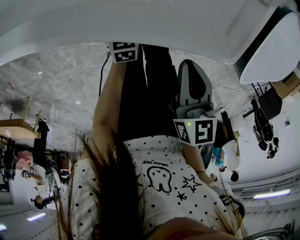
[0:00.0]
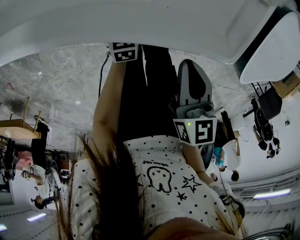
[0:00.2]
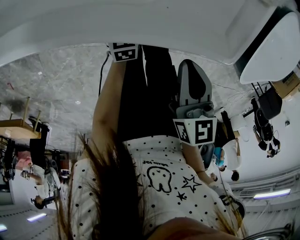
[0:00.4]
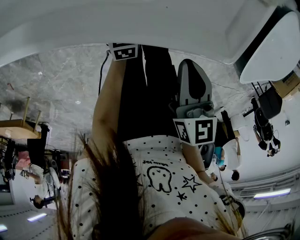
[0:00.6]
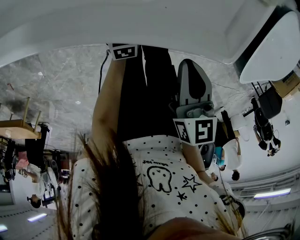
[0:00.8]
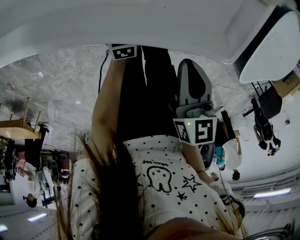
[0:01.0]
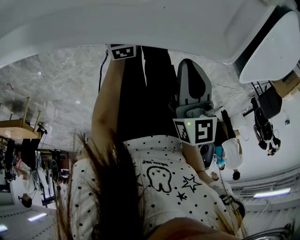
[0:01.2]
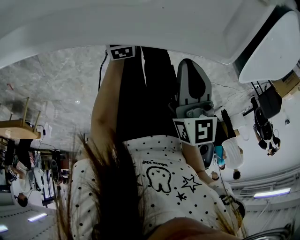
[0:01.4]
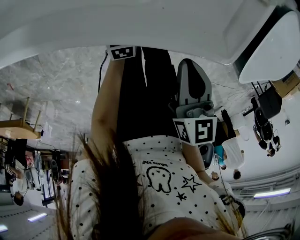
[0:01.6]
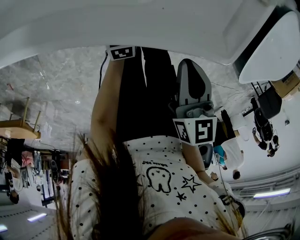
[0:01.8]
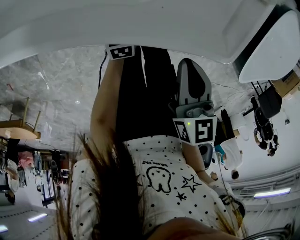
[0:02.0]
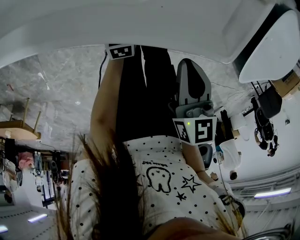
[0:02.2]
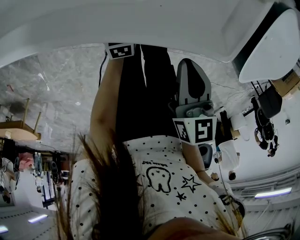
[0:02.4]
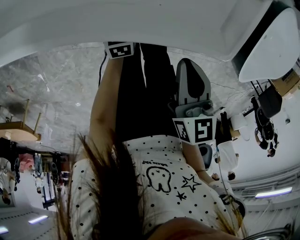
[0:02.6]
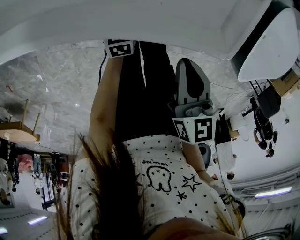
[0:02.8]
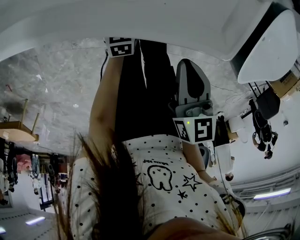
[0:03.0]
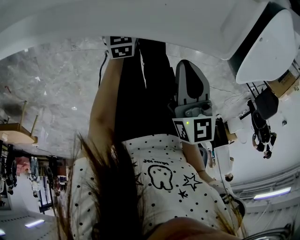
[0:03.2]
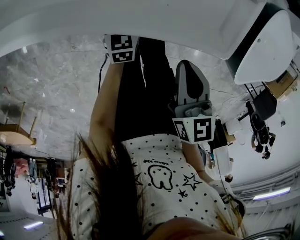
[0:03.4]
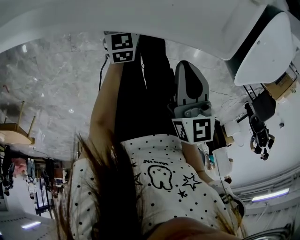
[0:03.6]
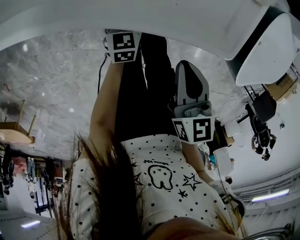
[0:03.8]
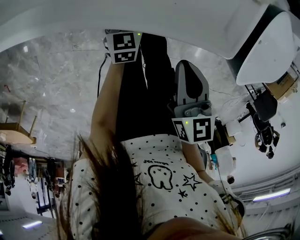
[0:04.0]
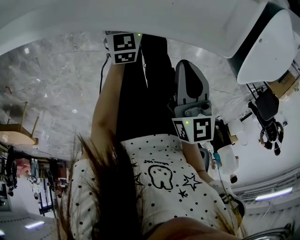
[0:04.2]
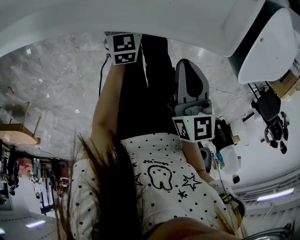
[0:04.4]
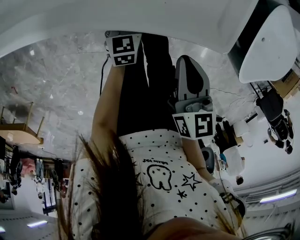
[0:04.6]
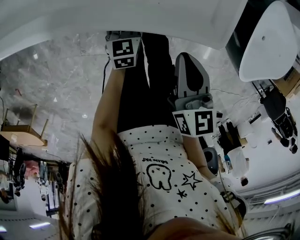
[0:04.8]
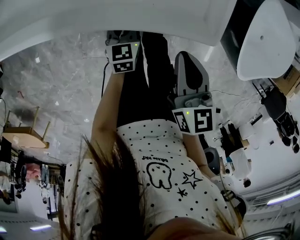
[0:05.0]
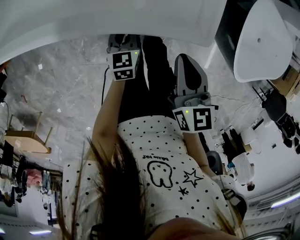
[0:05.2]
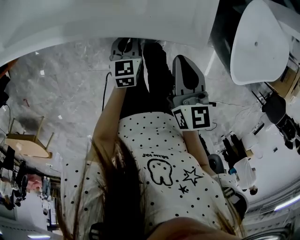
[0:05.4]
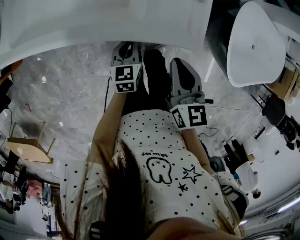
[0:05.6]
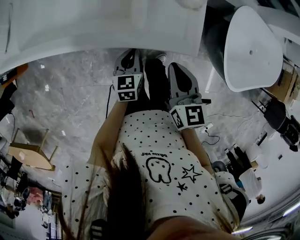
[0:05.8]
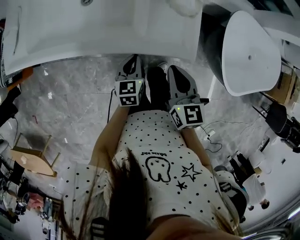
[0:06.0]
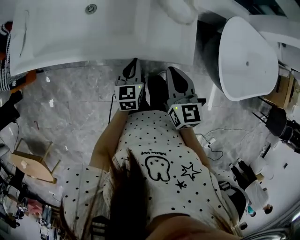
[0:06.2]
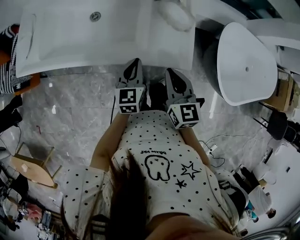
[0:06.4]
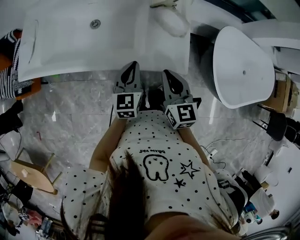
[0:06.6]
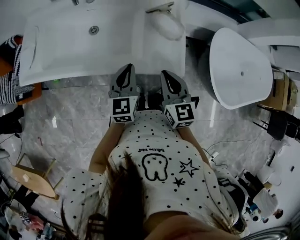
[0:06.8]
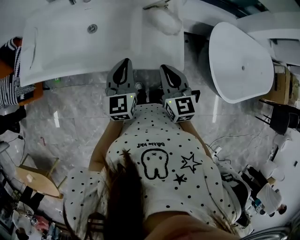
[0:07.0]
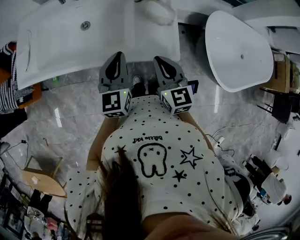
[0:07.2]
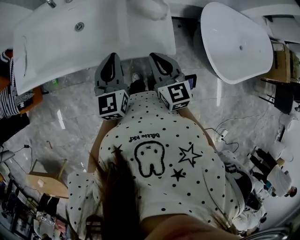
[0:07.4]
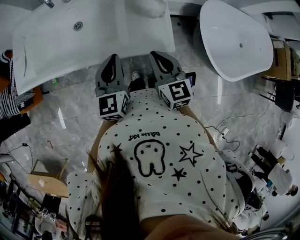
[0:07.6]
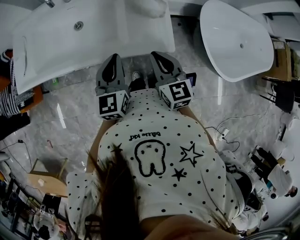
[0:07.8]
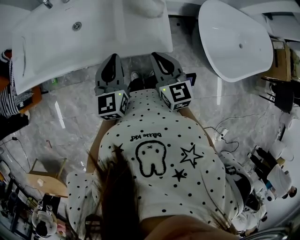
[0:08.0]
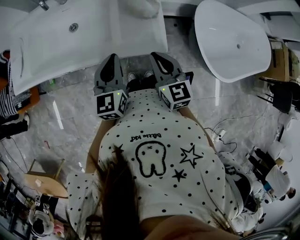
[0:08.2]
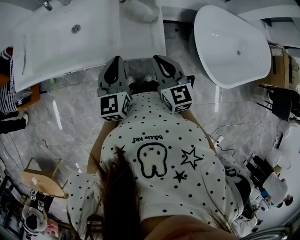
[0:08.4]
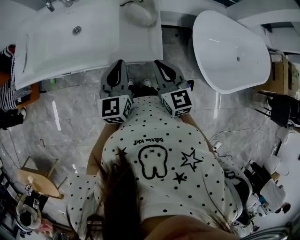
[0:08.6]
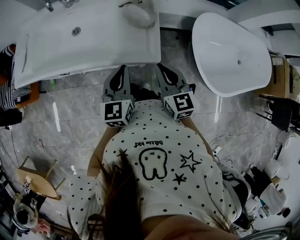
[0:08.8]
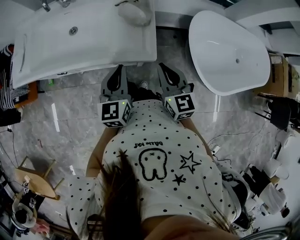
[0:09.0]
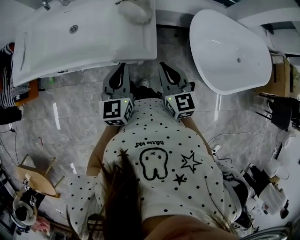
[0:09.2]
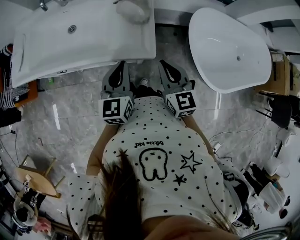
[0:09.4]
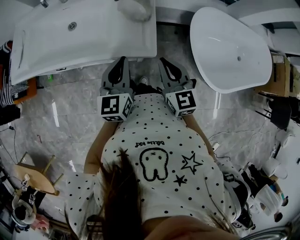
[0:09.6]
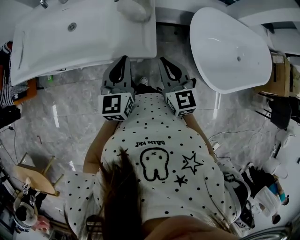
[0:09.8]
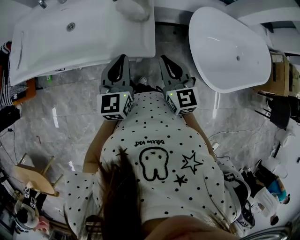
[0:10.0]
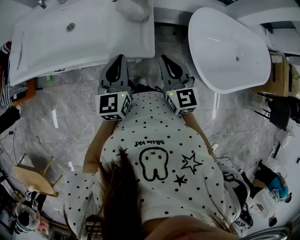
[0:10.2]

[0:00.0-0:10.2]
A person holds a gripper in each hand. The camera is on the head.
0:00.0 to 0:03.0: The grippers move only a little.
0:03.0 to 0:04.4: The left gripper closes.
0:04.4 to 0:05.8: Both grippers move upward, about 15 cm.
0:05.8 to 0:07.2: The right gripper heads upward, covering about 5 cm, while the left gripper moves upward, approximately 25 cm, and changes its angle by approximately 30 degrees.
0:07.2 to 0:08.8: The right gripper shifts some 10 cm to the right. Meanwhile the left gripper moves to the right and backward, about 10 cm.
0:08.8 to 0:10.2: The grippers move only a little.

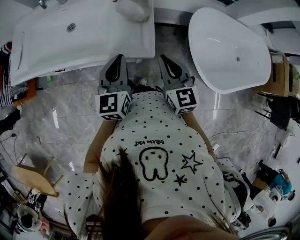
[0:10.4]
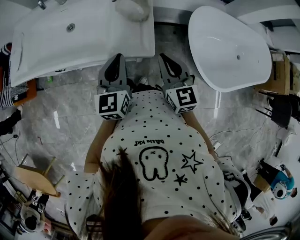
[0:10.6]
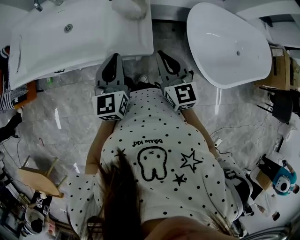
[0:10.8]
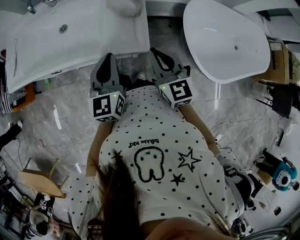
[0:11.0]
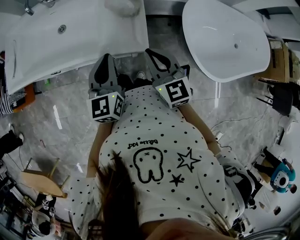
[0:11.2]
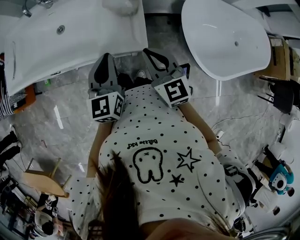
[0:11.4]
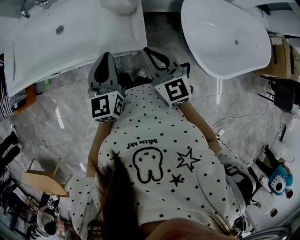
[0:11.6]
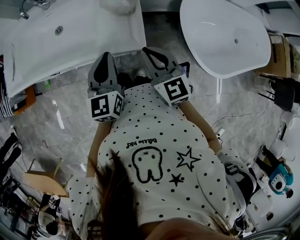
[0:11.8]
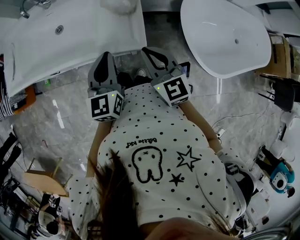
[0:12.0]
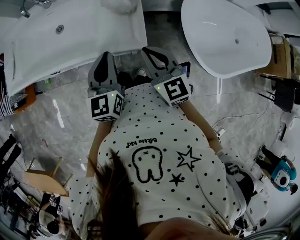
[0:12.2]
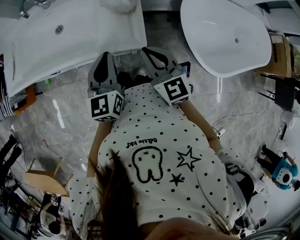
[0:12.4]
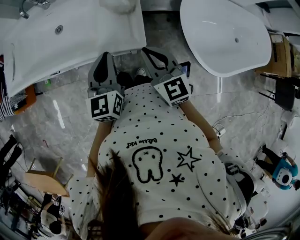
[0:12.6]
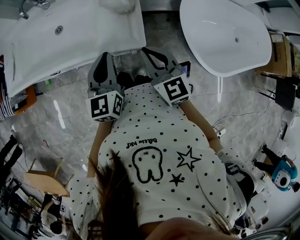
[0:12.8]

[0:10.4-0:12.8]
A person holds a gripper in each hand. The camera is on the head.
0:10.4 to 0:11.6: There are only small adjustments of the grippers.
0:11.6 to 0:12.8: Neither gripper changes place.

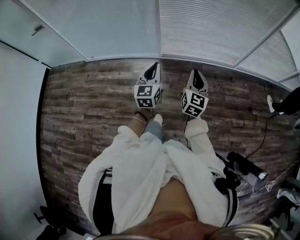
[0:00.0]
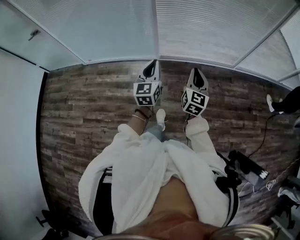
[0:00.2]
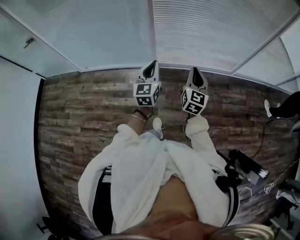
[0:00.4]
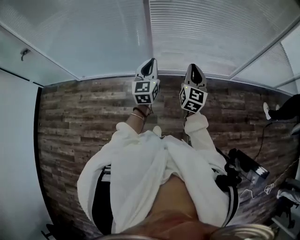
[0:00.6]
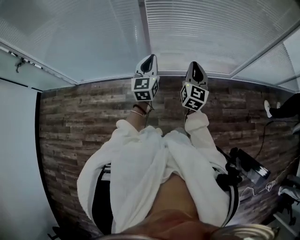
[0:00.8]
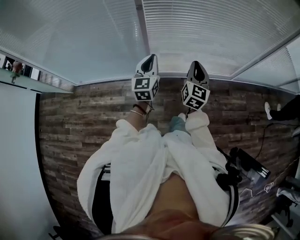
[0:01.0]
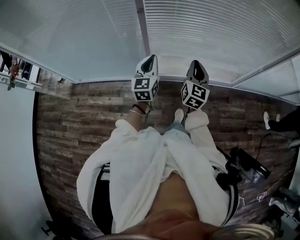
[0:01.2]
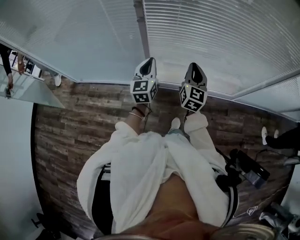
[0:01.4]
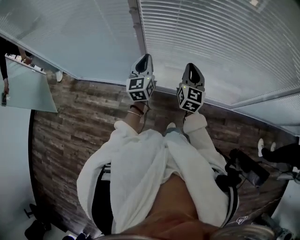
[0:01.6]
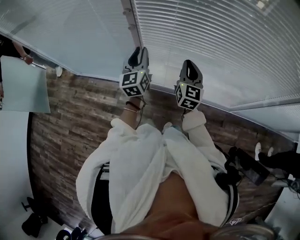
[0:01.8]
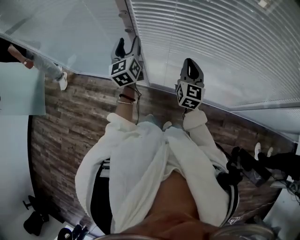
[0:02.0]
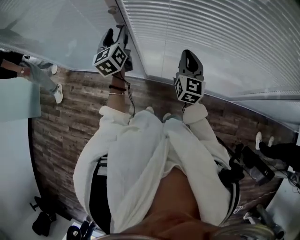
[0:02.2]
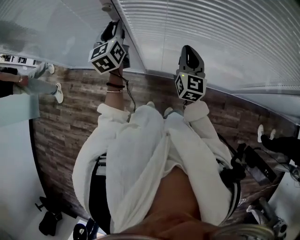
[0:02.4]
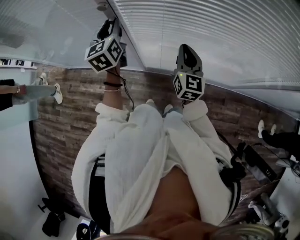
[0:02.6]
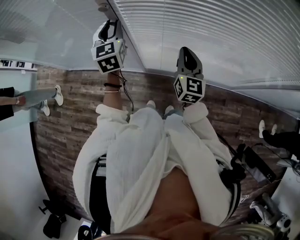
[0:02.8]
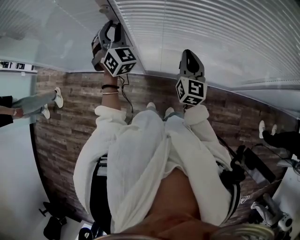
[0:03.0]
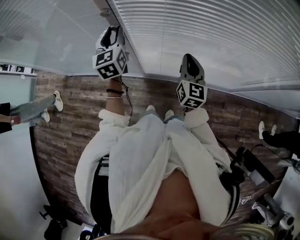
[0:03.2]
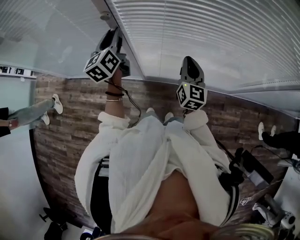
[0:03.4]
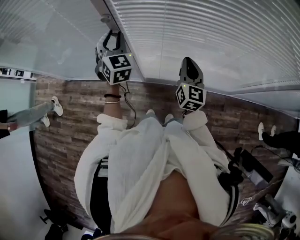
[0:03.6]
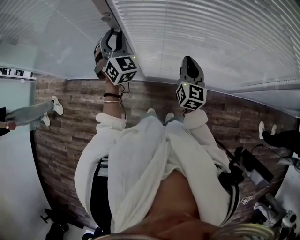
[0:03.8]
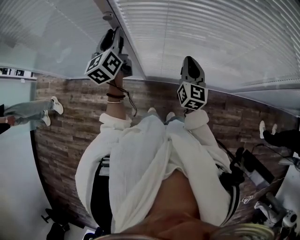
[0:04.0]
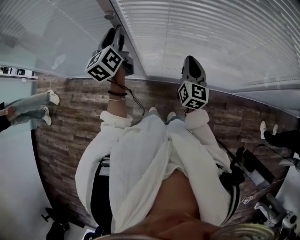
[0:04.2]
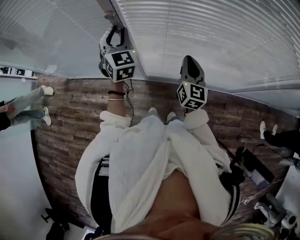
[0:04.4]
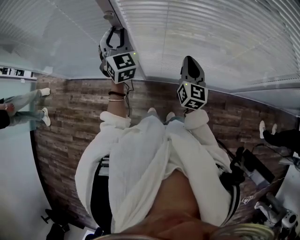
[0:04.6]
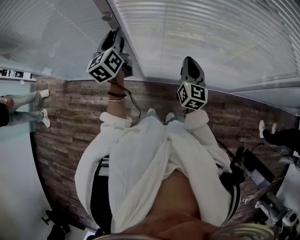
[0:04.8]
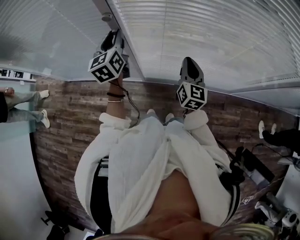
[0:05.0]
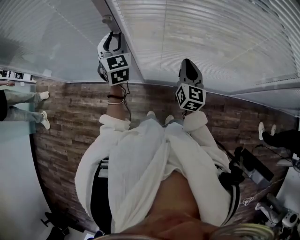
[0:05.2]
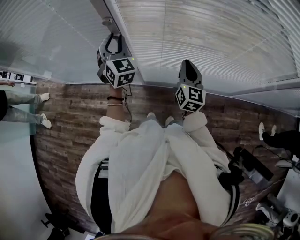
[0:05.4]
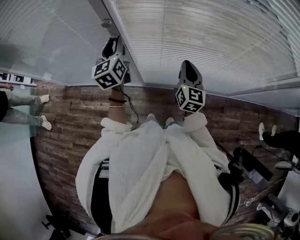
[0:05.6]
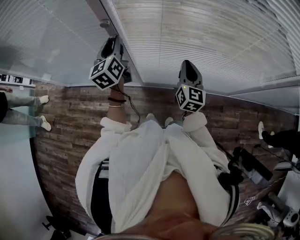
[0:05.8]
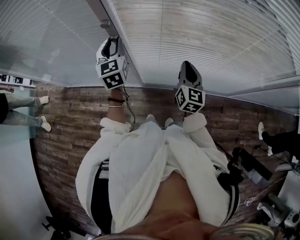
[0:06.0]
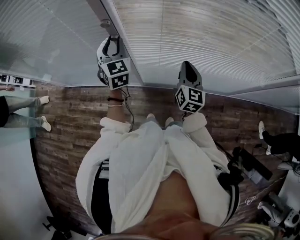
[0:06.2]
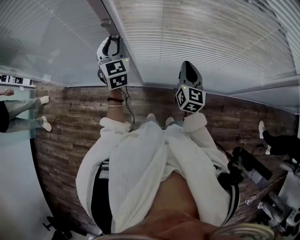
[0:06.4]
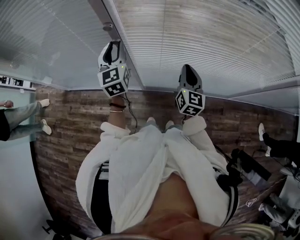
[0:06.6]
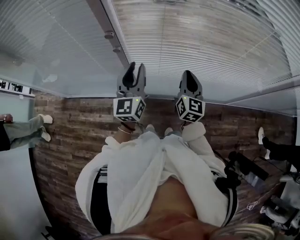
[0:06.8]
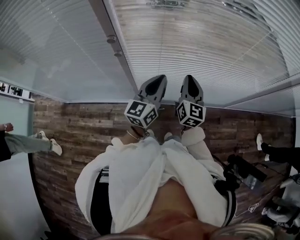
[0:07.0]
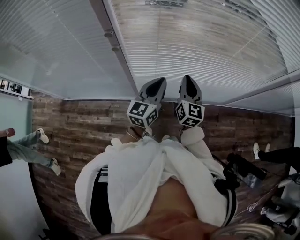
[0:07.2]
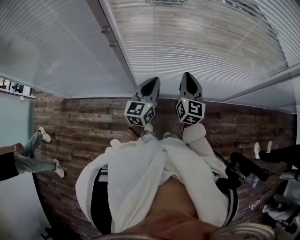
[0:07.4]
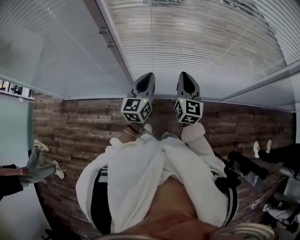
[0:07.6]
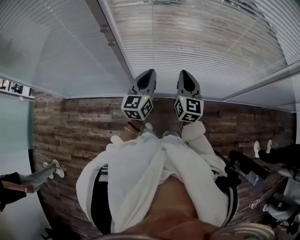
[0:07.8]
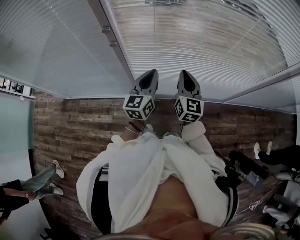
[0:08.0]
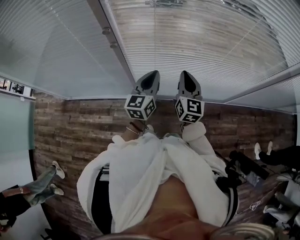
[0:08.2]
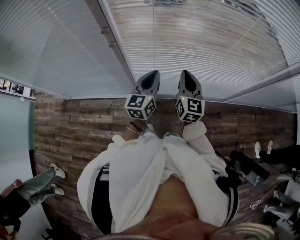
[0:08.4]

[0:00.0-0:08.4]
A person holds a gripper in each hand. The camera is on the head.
0:00.0 to 0:01.4: The pair of grippers is taken forward, some 50 cm.
0:01.4 to 0:02.8: Both grippers travel together forward, roughly 20 cm. The left gripper turns by approximately 20 degrees, and opens up.
0:02.8 to 0:04.2: The left gripper changes its angle by some 30 degrees.
0:05.6 to 0:07.0: The left gripper heads to the right and backward, covering approximately 25 cm, changes its angle by some 40 degrees, and closes up. Meanwhile the right gripper ends up approximately 5 cm from where it was.
0:07.0 to 0:08.4: The left gripper is displaced downward by approximately 5 cm.

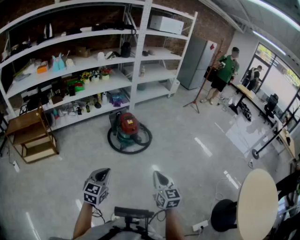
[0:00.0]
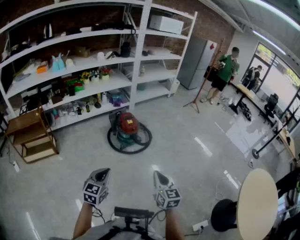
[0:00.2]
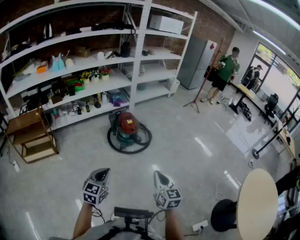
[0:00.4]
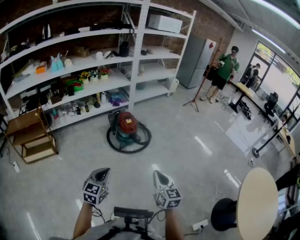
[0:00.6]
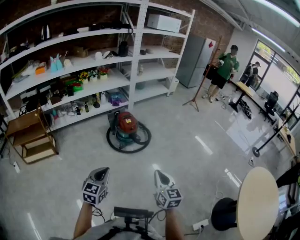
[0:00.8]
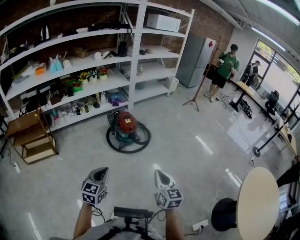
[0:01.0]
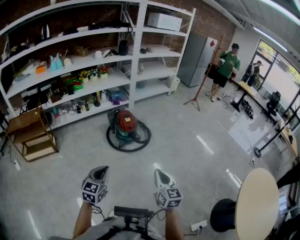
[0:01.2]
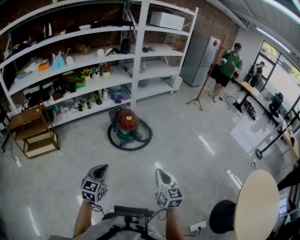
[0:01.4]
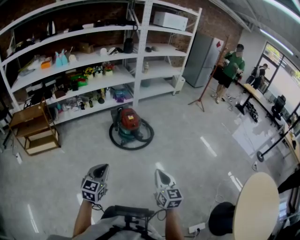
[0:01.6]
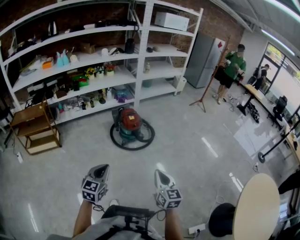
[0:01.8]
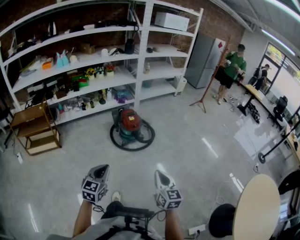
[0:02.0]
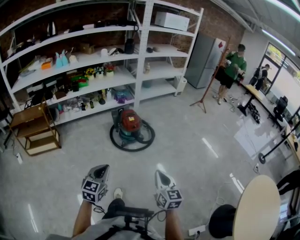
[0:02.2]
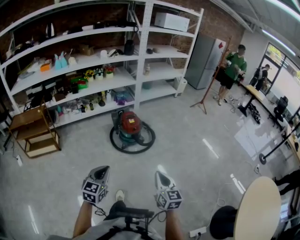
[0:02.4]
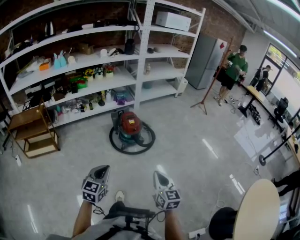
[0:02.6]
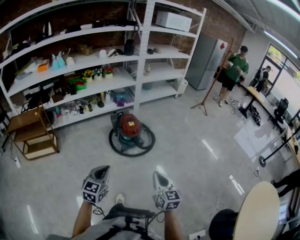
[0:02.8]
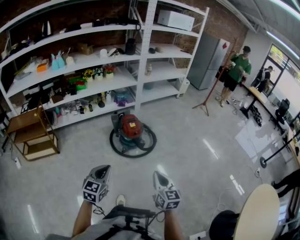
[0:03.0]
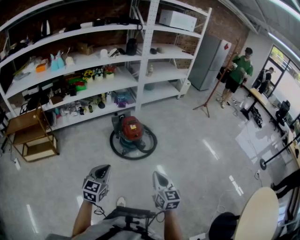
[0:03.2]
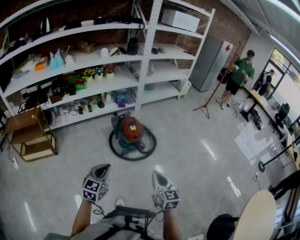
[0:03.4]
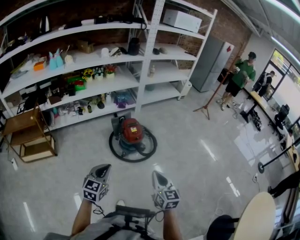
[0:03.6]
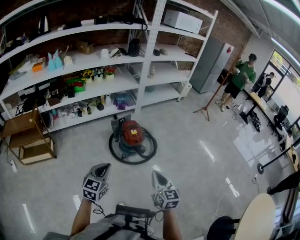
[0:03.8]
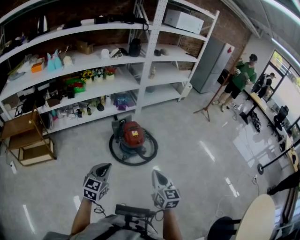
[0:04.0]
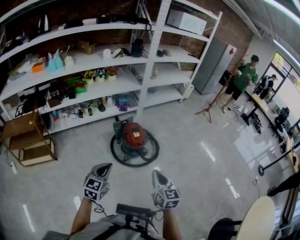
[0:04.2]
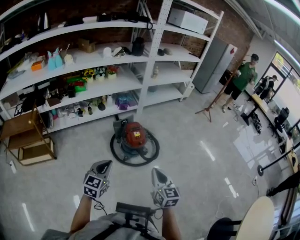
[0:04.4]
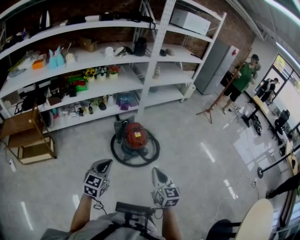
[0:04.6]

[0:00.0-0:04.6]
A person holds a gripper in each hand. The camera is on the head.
0:00.0 to 0:01.6: The two grippers go about 5 cm to the right.
0:01.6 to 0:03.0: The grippers both shift forward by about 15 cm.
0:03.0 to 0:04.6: The grippers both shift forward and to the left by about 20 cm.
